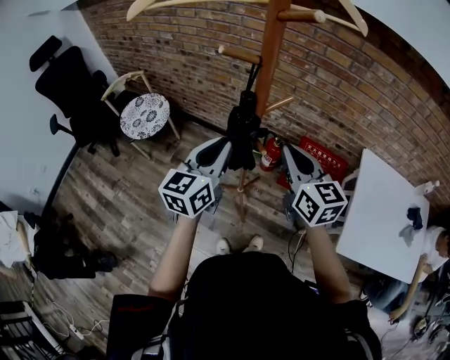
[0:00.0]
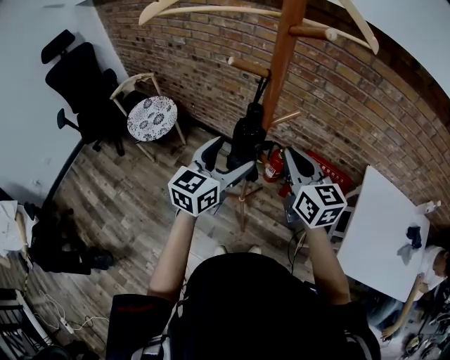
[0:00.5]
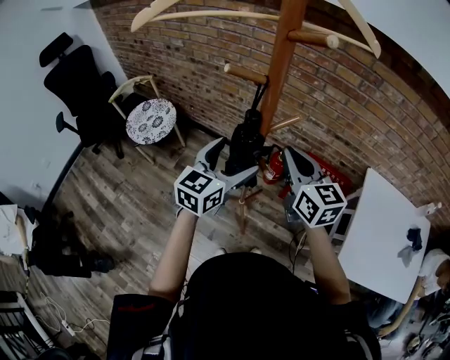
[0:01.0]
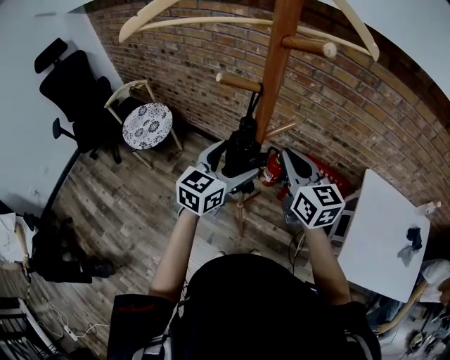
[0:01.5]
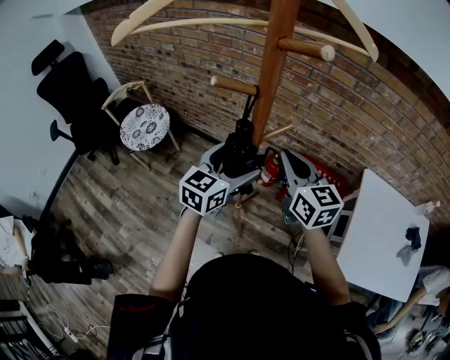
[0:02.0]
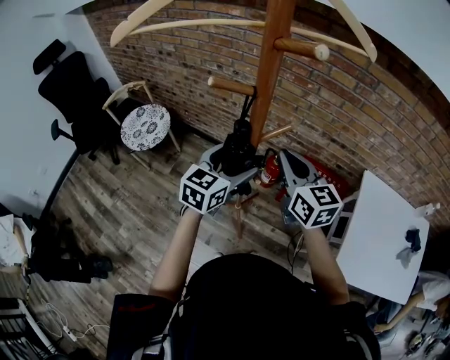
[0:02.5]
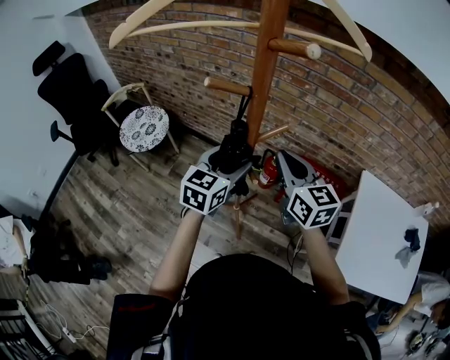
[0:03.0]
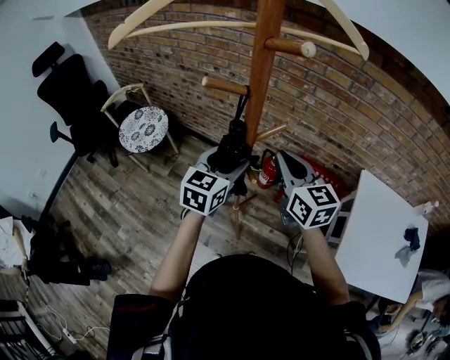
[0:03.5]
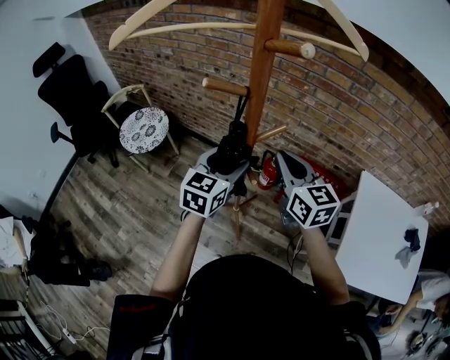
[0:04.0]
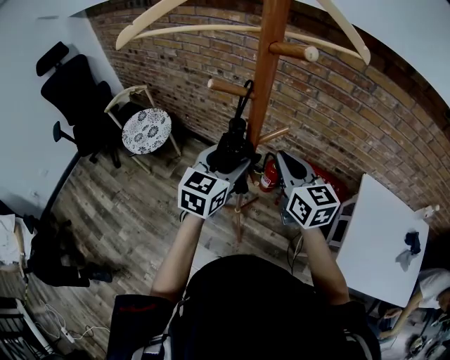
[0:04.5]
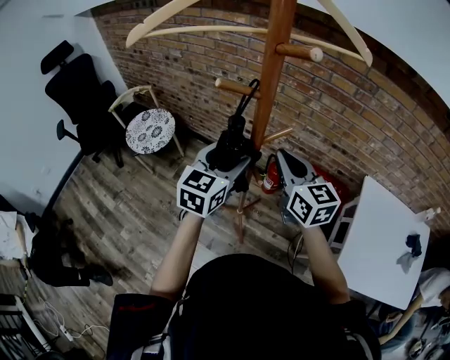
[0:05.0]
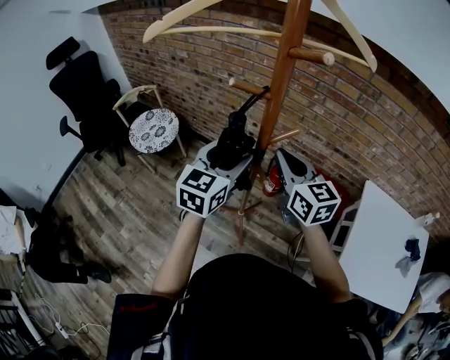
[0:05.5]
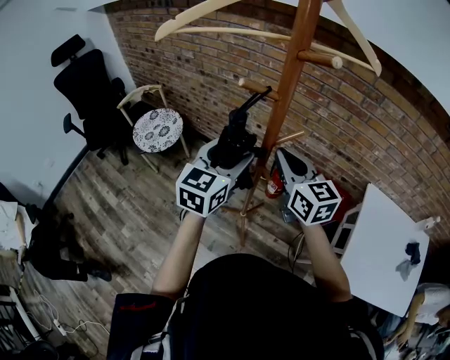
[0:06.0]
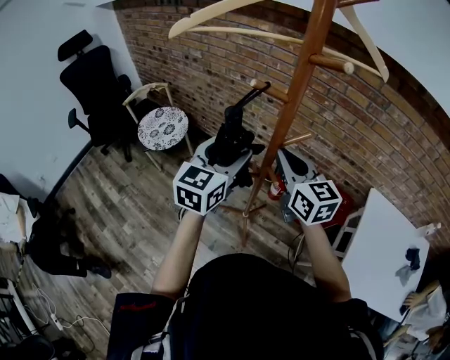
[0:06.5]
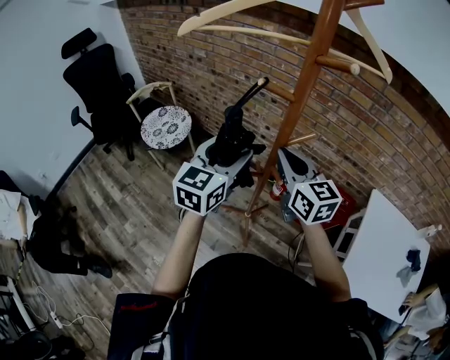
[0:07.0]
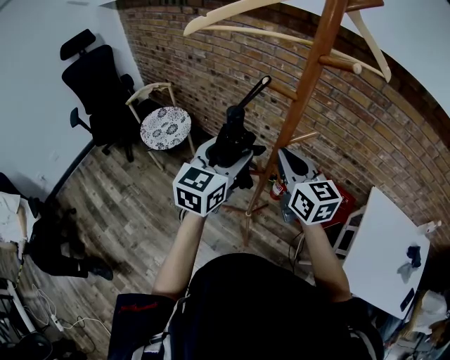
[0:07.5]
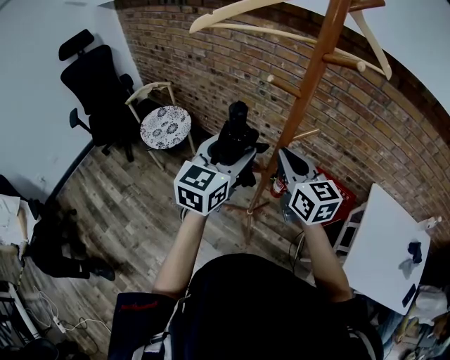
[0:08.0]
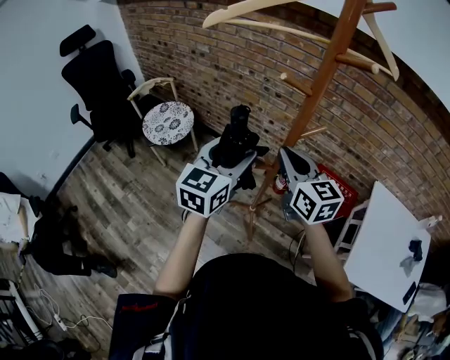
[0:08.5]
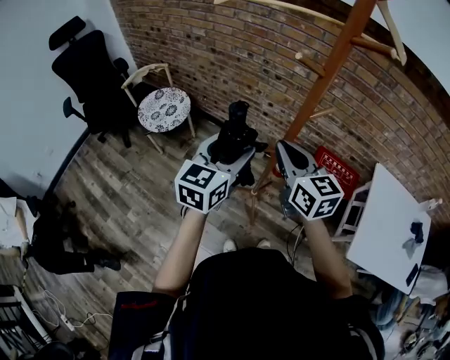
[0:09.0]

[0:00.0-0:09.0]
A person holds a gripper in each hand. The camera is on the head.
0:00.0 to 0:02.0: The two grippers go roughly 5 cm forward. The left gripper opens.
0:02.0 to 0:04.5: The left gripper closes up.
0:04.5 to 0:07.0: The left gripper shifts some 10 cm to the left and upward. Meanwhile the right gripper goes approximately 10 cm to the left.
0:07.0 to 0:09.0: The left gripper moves to the left, approximately 5 cm, while the right gripper heads to the left and backward, covering approximately 10 cm.

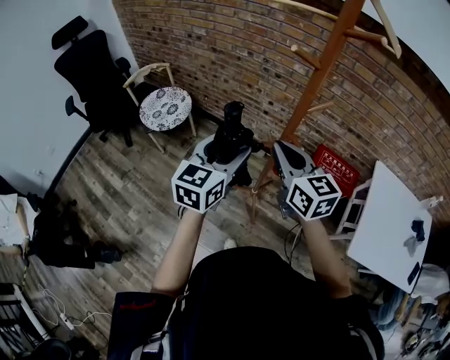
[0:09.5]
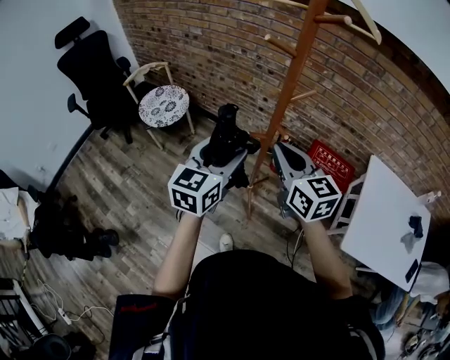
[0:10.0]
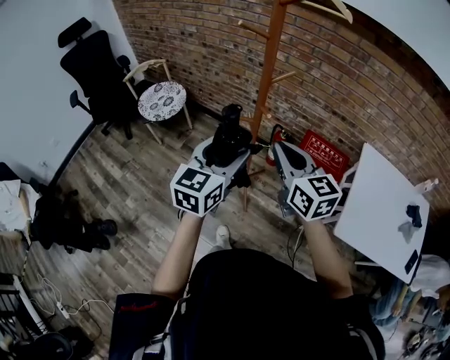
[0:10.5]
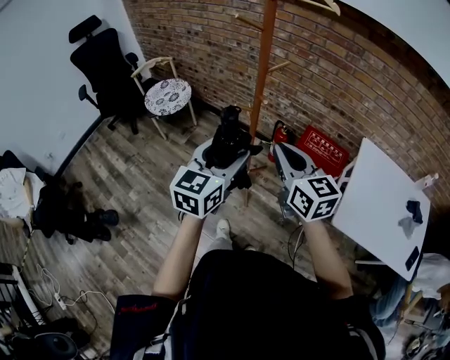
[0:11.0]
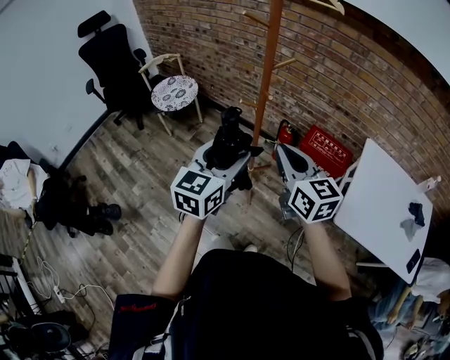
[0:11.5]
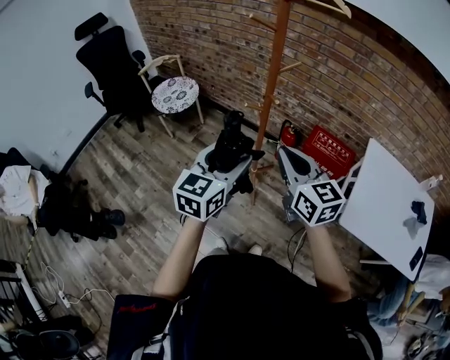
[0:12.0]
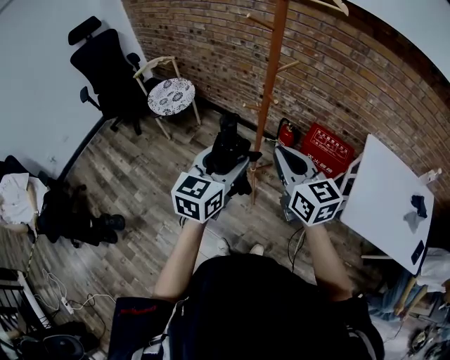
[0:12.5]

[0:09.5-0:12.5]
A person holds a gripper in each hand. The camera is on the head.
0:09.5 to 0:11.0: The grippers both shift backward and to the right by about 20 cm.
0:11.0 to 0:12.5: The grippers make only small movements.

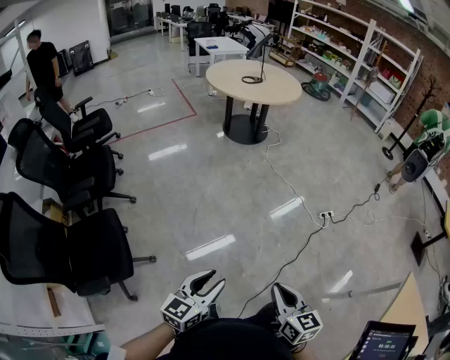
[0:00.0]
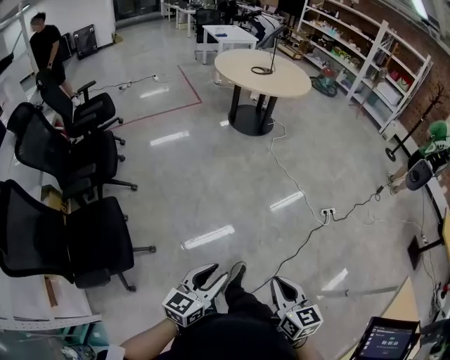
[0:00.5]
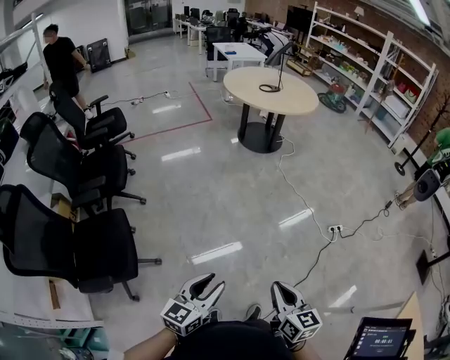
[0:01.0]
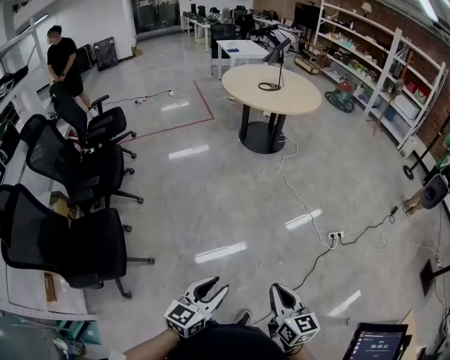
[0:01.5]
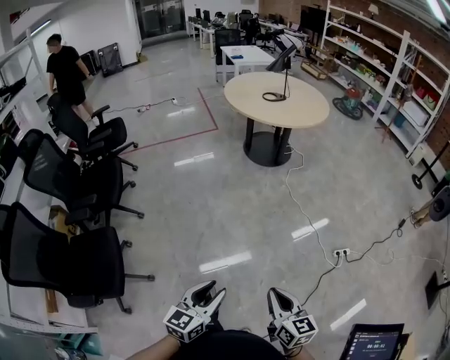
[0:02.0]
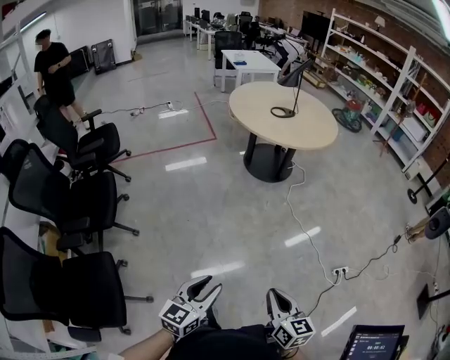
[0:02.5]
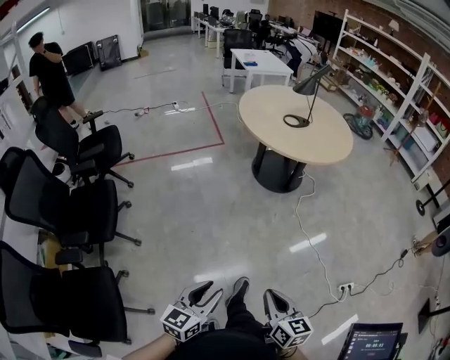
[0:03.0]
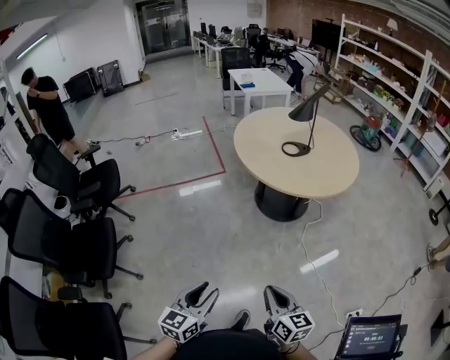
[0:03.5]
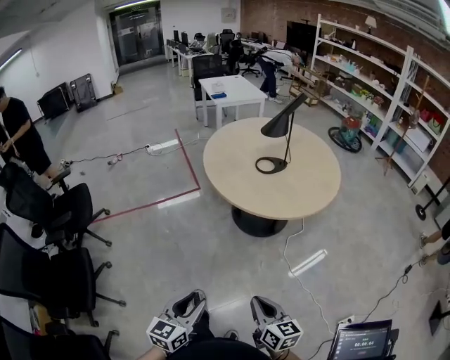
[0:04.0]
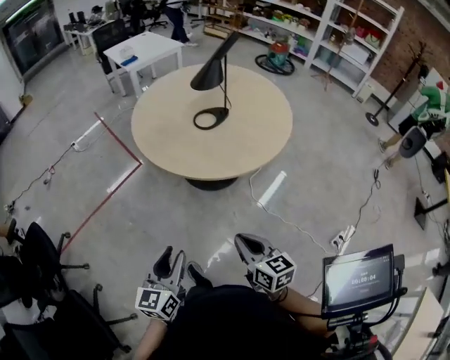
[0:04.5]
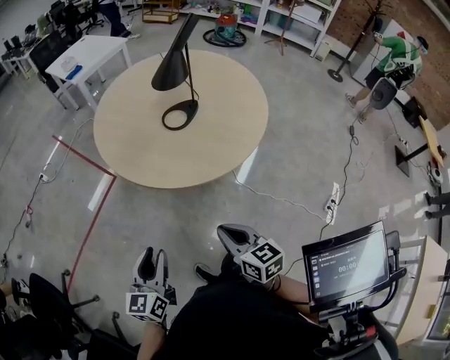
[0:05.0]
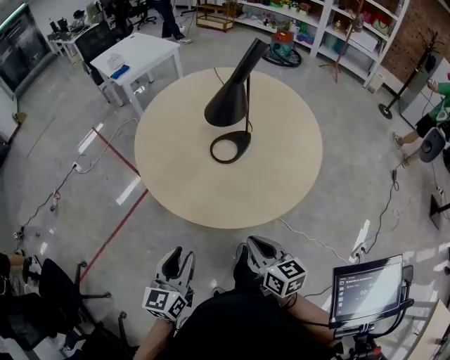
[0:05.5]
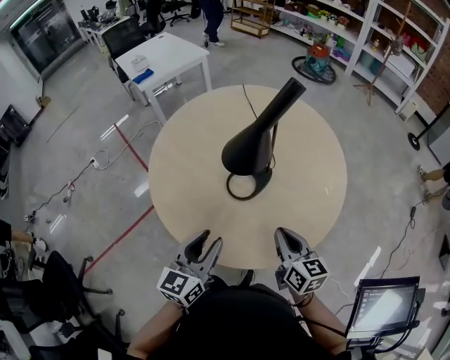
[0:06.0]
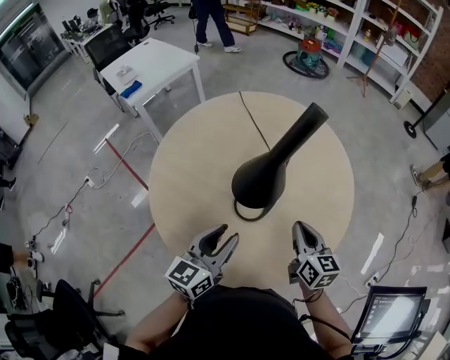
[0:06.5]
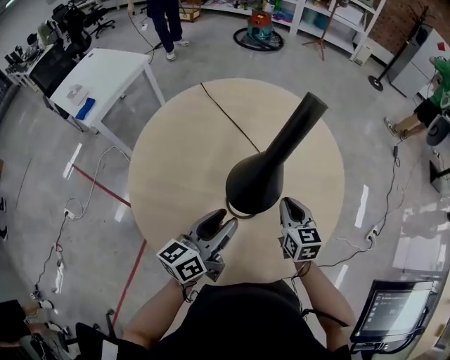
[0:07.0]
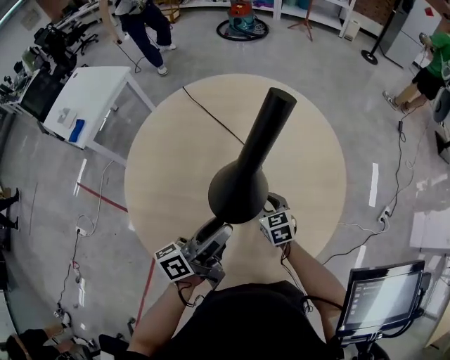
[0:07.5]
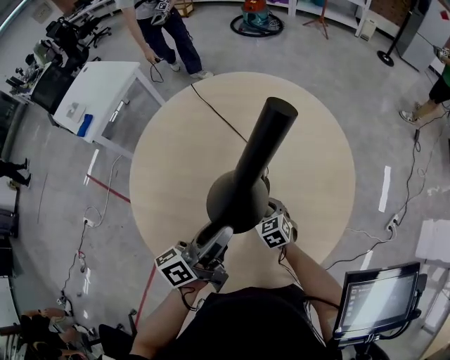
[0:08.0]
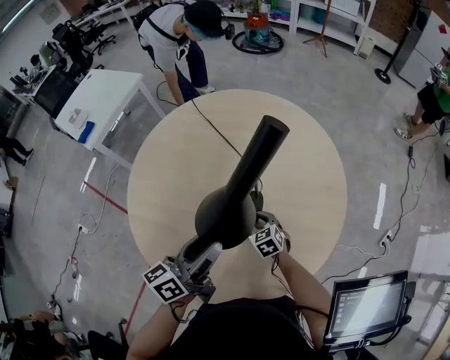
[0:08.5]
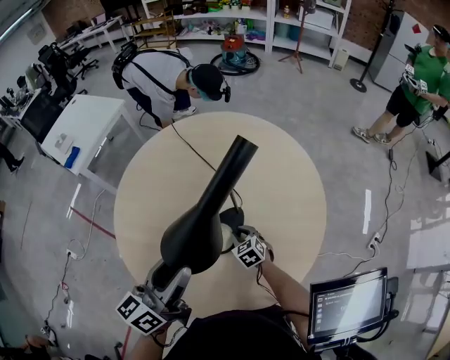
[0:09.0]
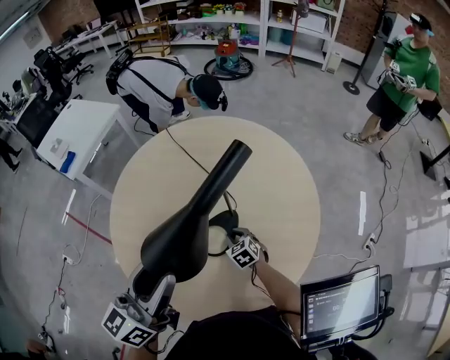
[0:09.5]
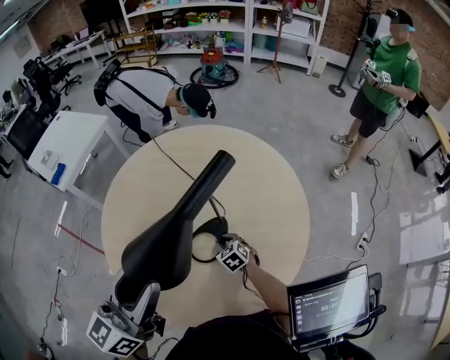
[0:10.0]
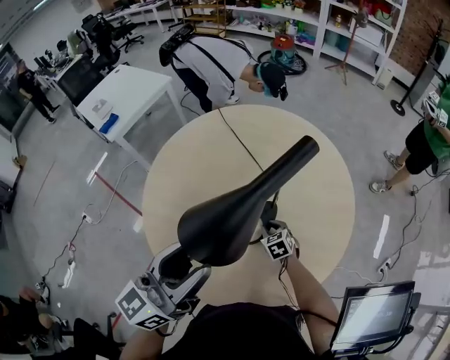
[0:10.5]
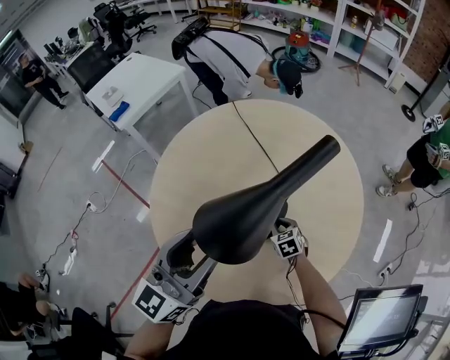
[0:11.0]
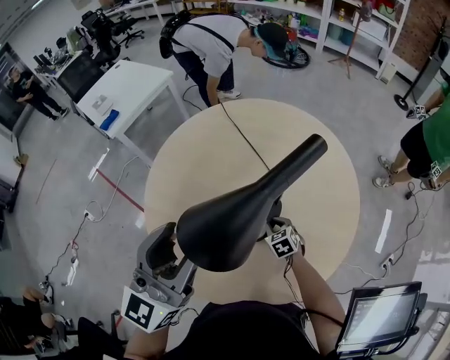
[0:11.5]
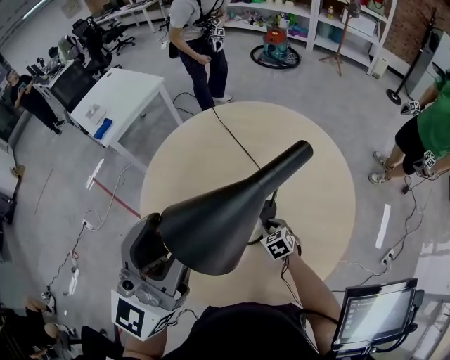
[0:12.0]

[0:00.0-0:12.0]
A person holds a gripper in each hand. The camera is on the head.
0:00.0 to 0:02.0: Both grippers travel together forward, some 20 cm.
0:02.0 to 0:04.0: Both grippers are carried forward, some 60 cm.
0:04.0 to 0:06.0: The pair of grippers is taken forward, some 50 cm. The left gripper changes its angle by some 20 degrees; the right gripper turns by roughly 20 degrees.
0:06.0 to 0:08.0: The left gripper ends up roughly 20 cm from where it was, and changes its angle by some 50 degrees. Meanwhile the right gripper is displaced downward by roughly 20 cm, turns by some 40 degrees, and opens.
0:08.0 to 0:10.0: The left gripper moves upward, roughly 20 cm, and turns by roughly 40 degrees.
0:10.0 to 0:12.0: The left gripper moves upward, some 10 cm, and swivels about 30 degrees.

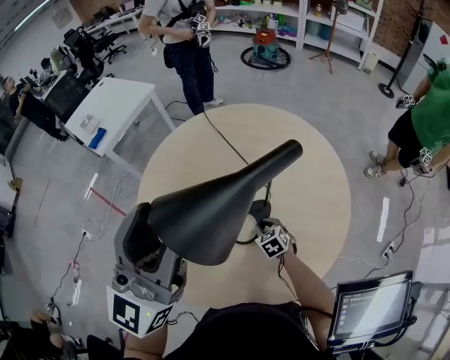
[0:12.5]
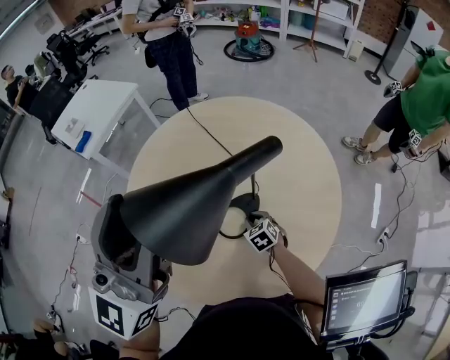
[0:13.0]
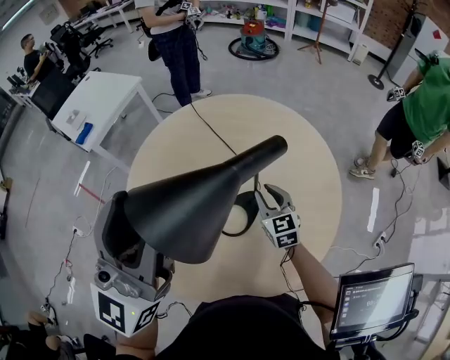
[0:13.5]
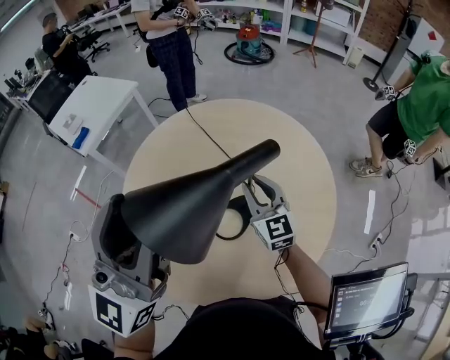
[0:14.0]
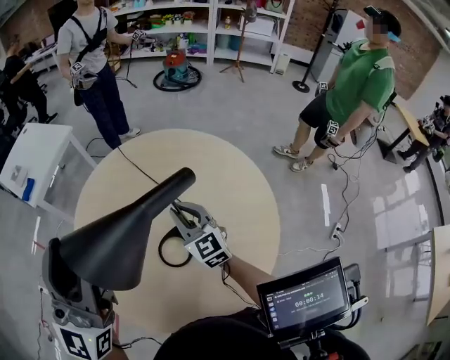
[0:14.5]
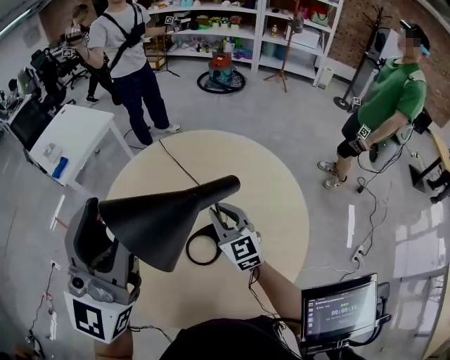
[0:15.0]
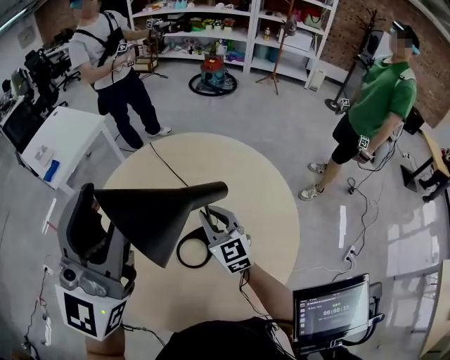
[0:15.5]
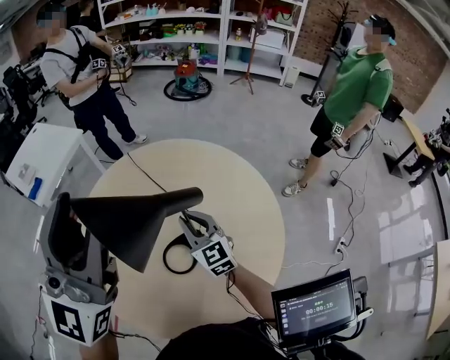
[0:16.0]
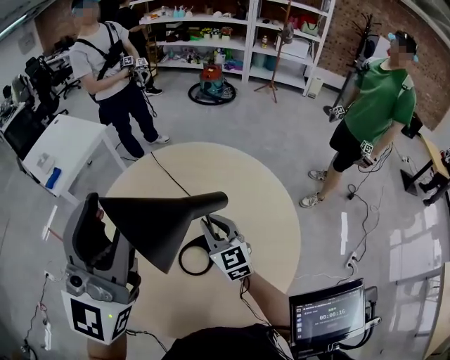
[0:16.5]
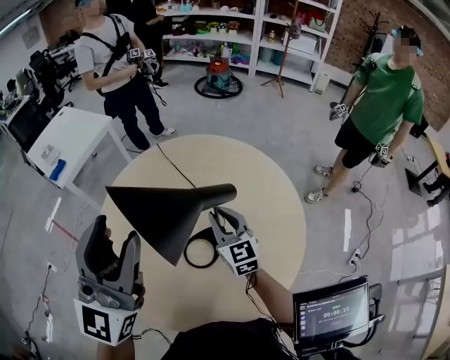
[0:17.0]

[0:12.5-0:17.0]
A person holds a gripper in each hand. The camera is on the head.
0:12.5 to 0:14.5: The right gripper shifts approximately 25 cm upward, and points its fingers some 40 degrees further upward.
